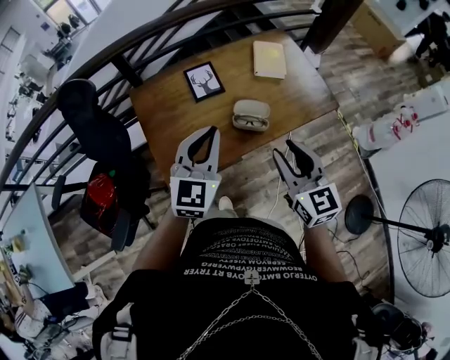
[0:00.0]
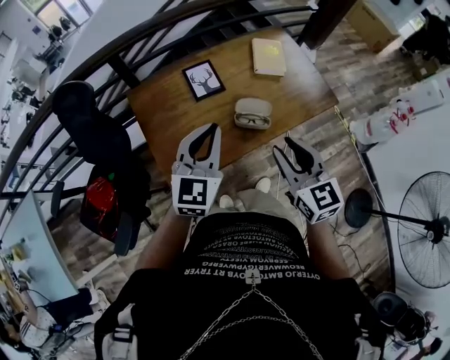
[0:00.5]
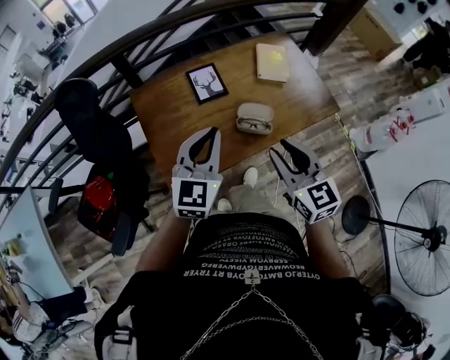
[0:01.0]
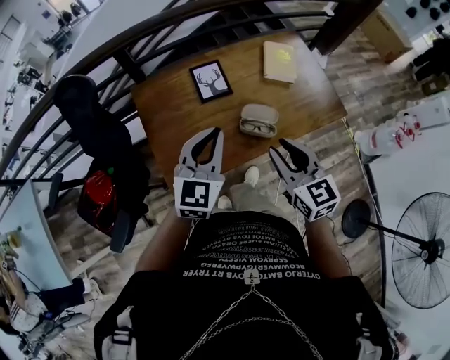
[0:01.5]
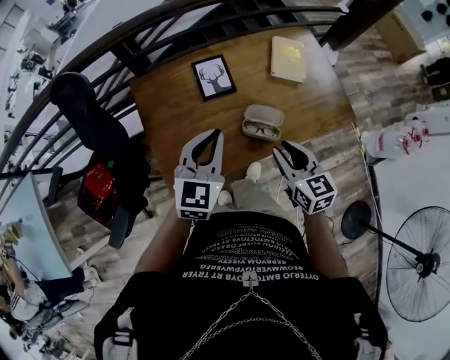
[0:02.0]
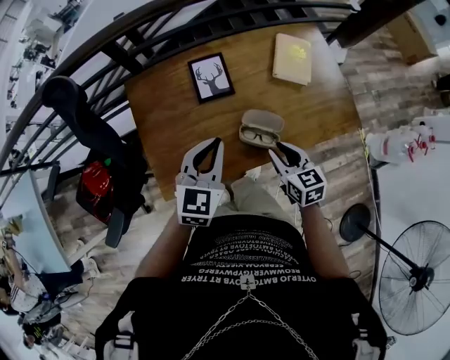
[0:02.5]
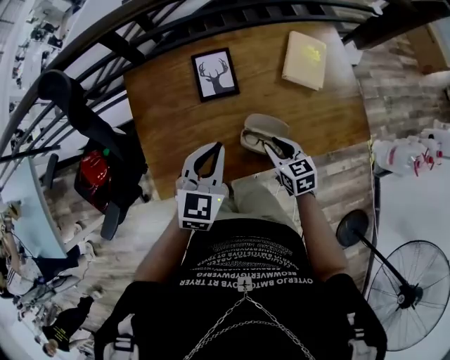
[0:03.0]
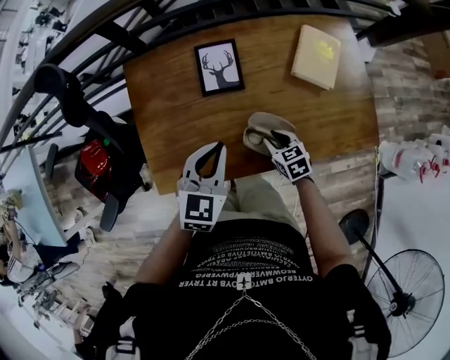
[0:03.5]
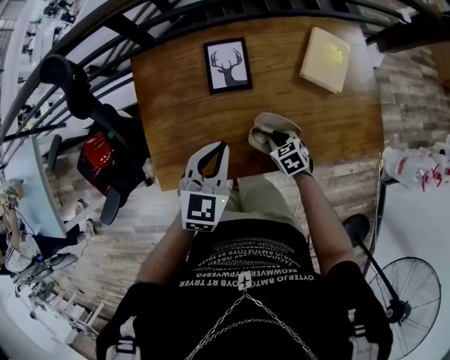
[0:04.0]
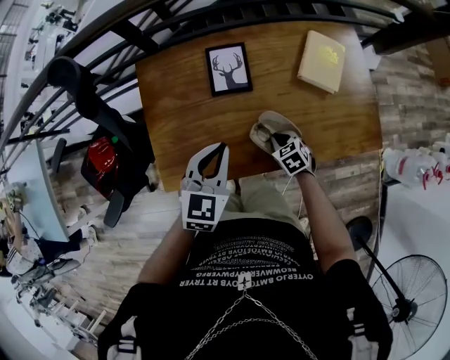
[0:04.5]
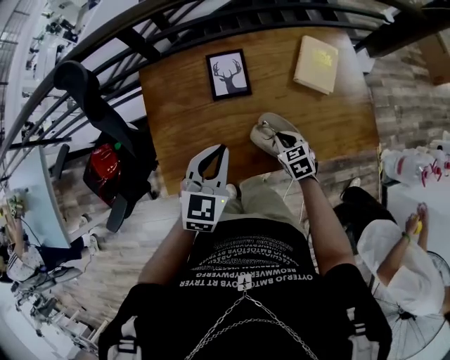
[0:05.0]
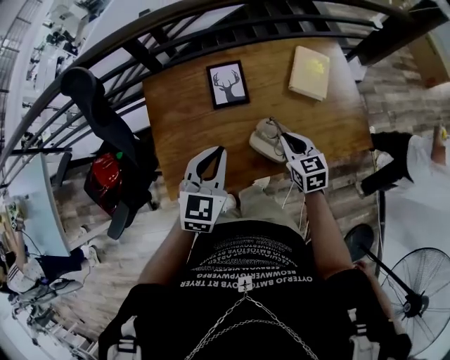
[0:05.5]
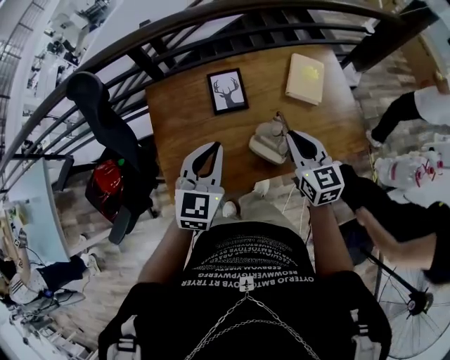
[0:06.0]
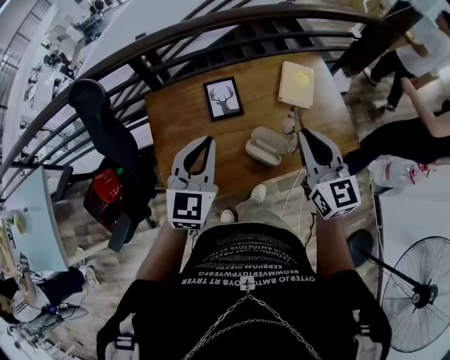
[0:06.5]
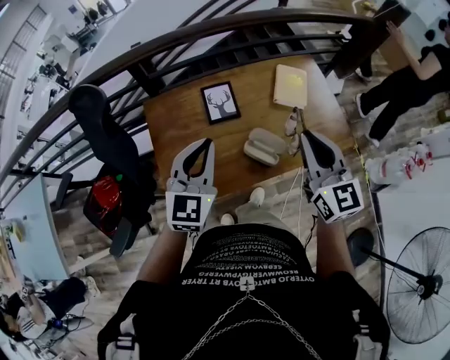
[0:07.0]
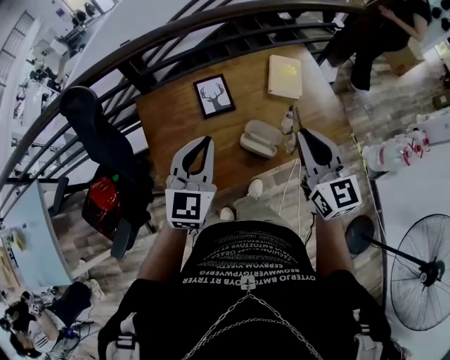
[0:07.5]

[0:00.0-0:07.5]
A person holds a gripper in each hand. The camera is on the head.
0:00.0 to 0:02.0: The left gripper travels forward and downward by about 10 cm; the right gripper goes roughly 15 cm downward and forward.
0:02.0 to 0:04.0: The left gripper travels downward by about 10 cm, while the right gripper heads downward, covering roughly 30 cm, and points its fingers some 30 degrees further downward.
0:04.0 to 0:05.5: The left gripper shifts some 5 cm upward, while the right gripper moves upward, approximately 15 cm, and turns by approximately 30 degrees.
0:05.5 to 0:07.5: The right gripper travels upward by approximately 25 cm, and rotates approximately 30 degrees, while the left gripper heads upward, covering some 10 cm.

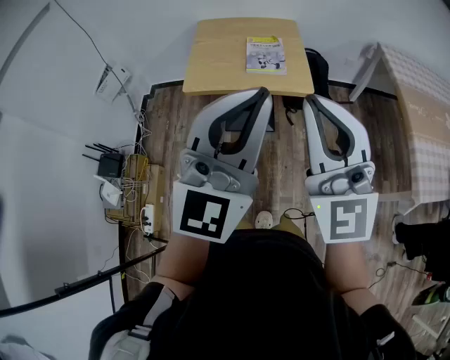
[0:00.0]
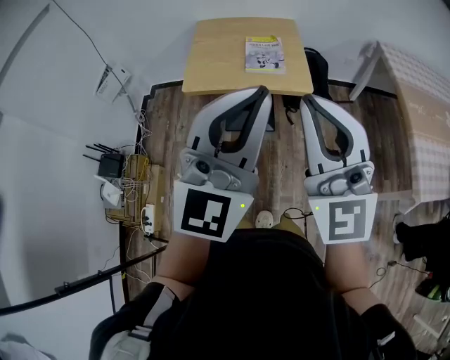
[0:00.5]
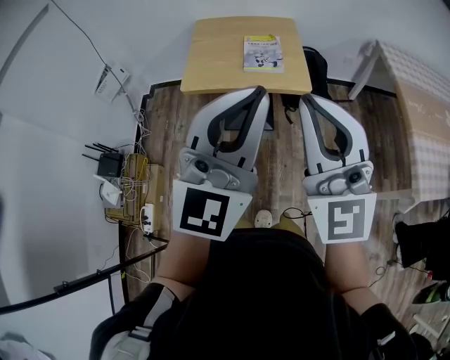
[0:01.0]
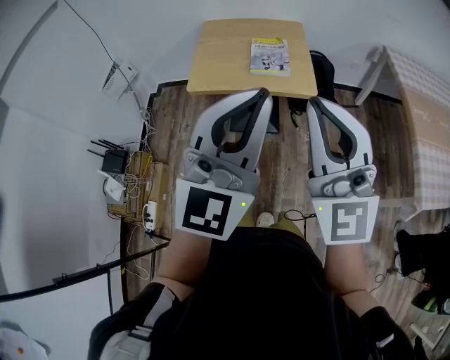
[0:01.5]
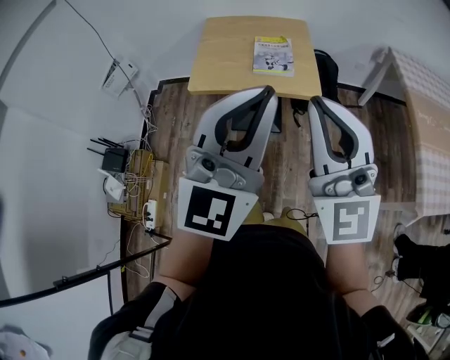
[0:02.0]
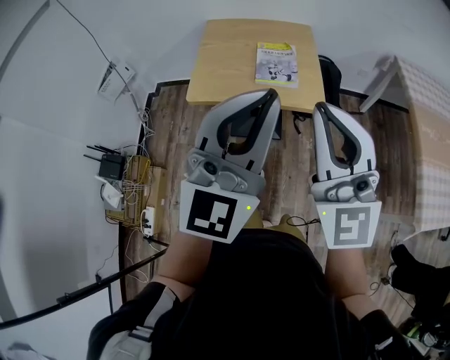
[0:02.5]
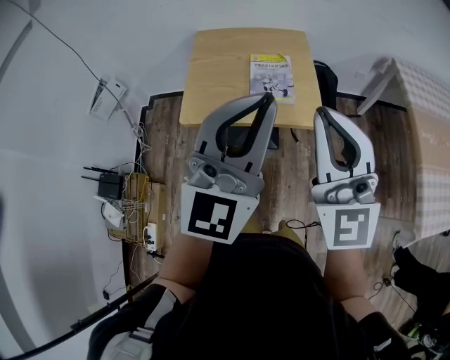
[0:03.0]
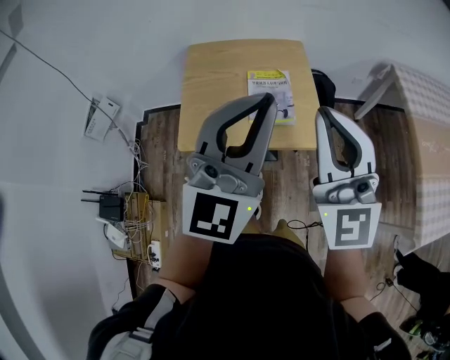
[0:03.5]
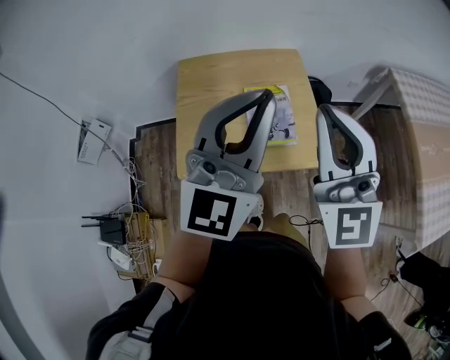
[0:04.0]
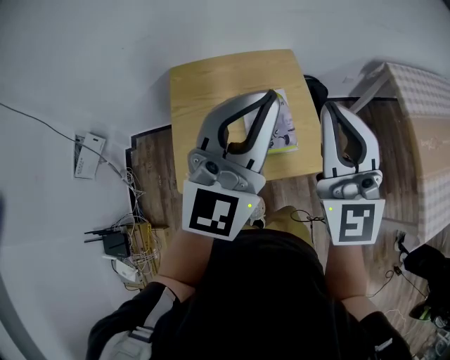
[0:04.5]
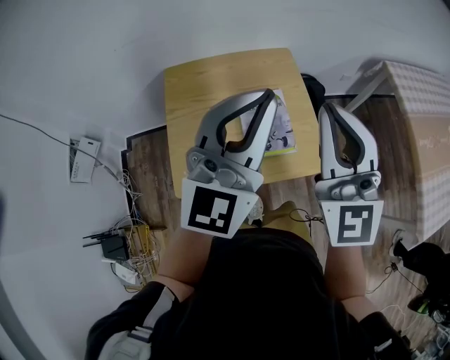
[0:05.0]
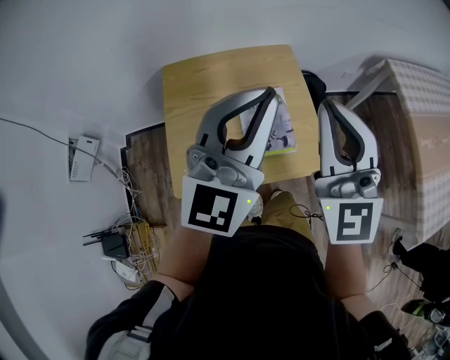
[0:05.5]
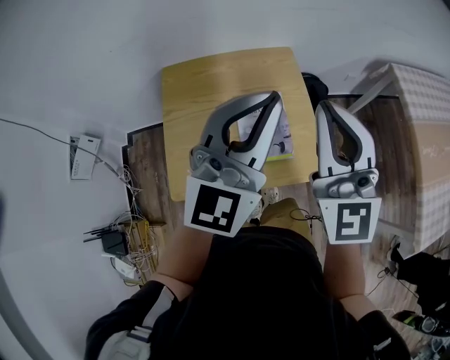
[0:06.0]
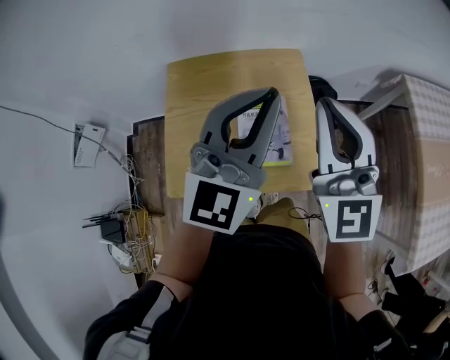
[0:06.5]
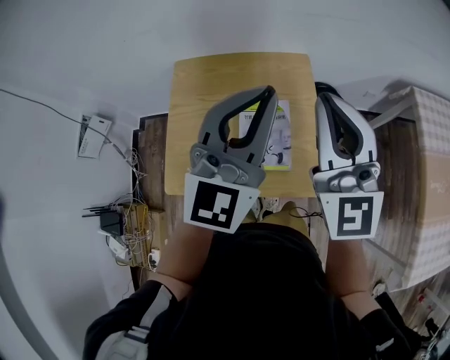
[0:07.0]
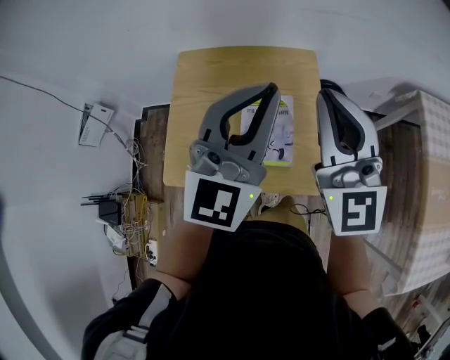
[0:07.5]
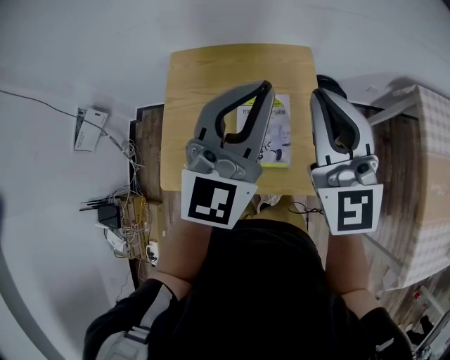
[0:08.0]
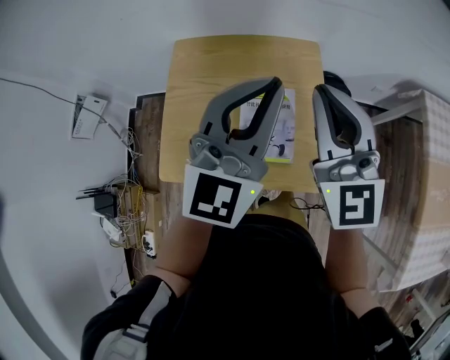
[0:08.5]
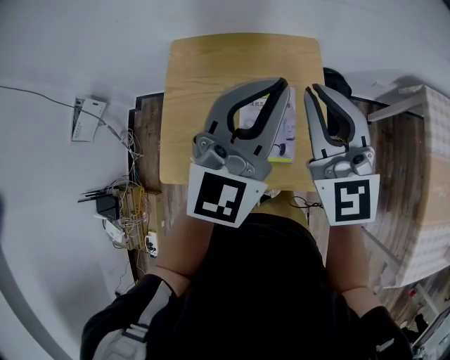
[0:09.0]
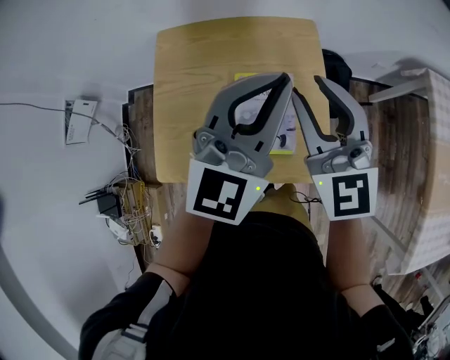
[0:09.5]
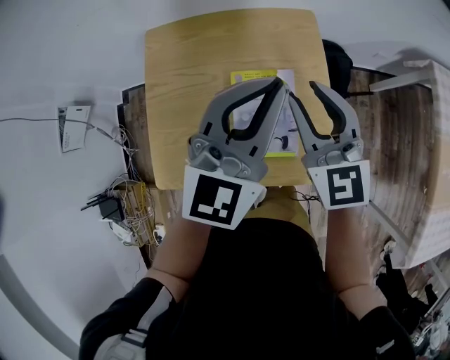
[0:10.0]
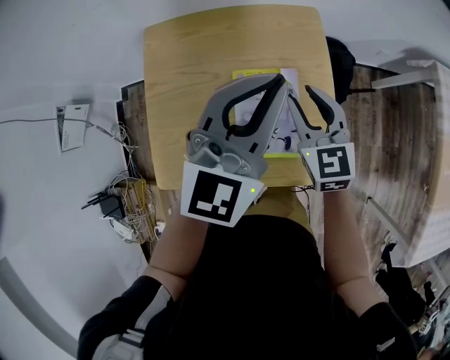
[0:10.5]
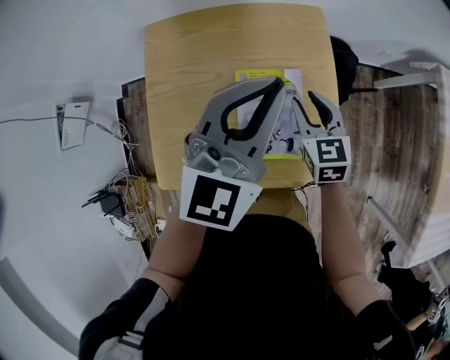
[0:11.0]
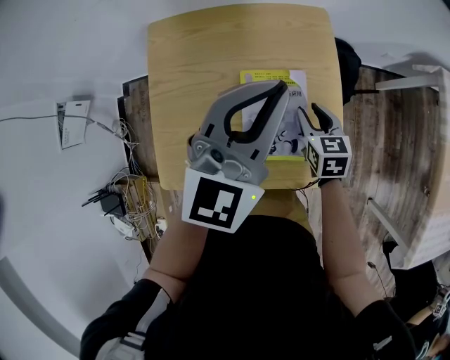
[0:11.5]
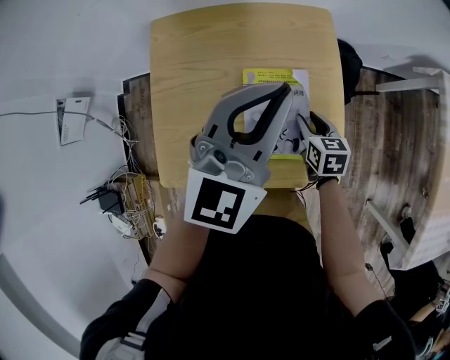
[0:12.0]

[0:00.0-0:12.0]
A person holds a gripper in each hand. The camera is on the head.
0:00.0 to 0:02.0: The grippers make only small movements.
0:02.0 to 0:04.0: Both grippers move forward, roughly 35 cm.
0:04.0 to 0:06.0: The grippers both shift forward by about 10 cm.
0:06.0 to 0:08.0: The two grippers go approximately 5 cm forward.
0:08.0 to 0:10.0: The left gripper goes about 10 cm downward, while the right gripper moves downward, some 15 cm, rotates roughly 20 degrees, and opens up.
0:10.0 to 0:12.0: The right gripper moves downward, some 25 cm, and tilts its fingers about 30 degrees downward.

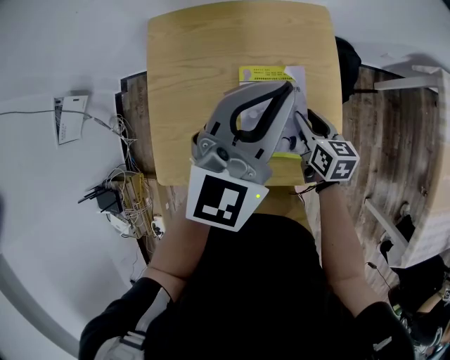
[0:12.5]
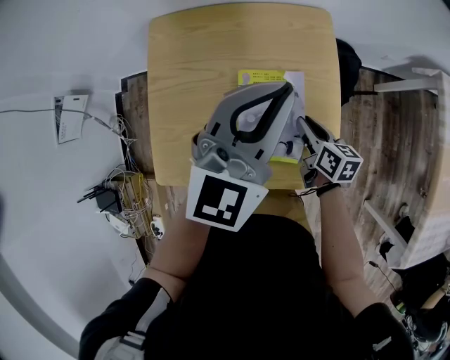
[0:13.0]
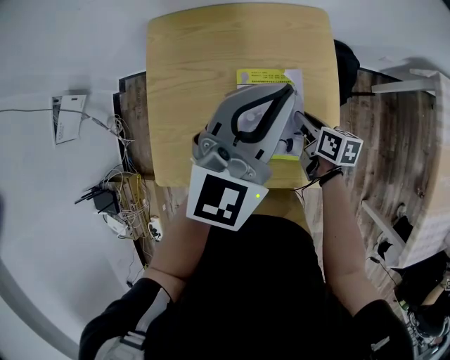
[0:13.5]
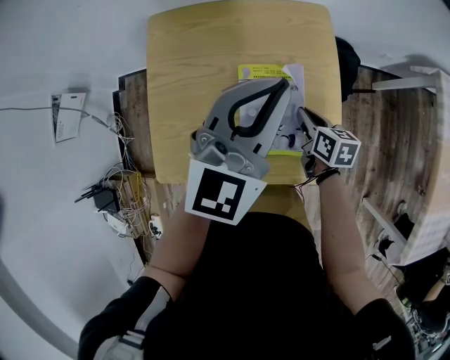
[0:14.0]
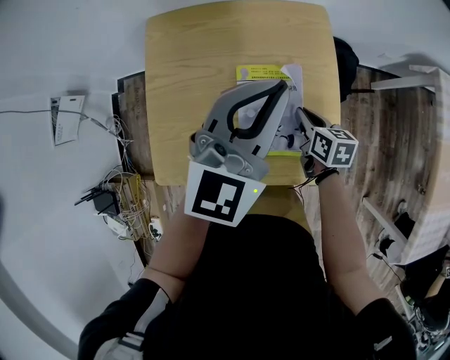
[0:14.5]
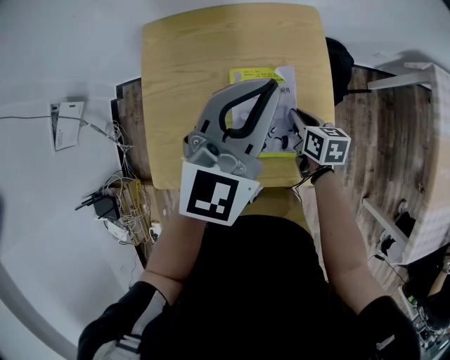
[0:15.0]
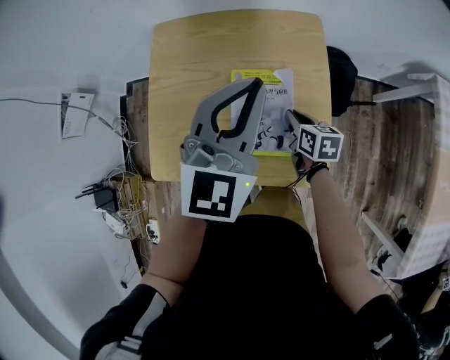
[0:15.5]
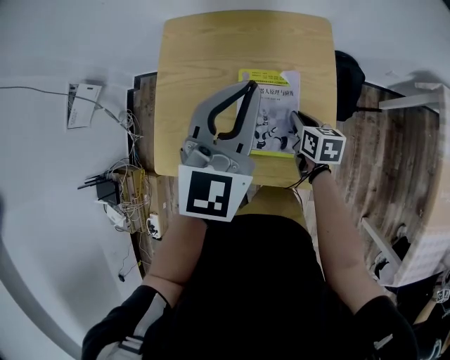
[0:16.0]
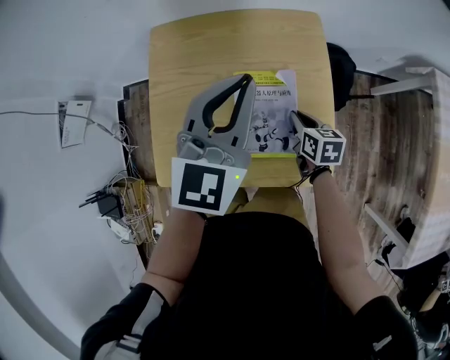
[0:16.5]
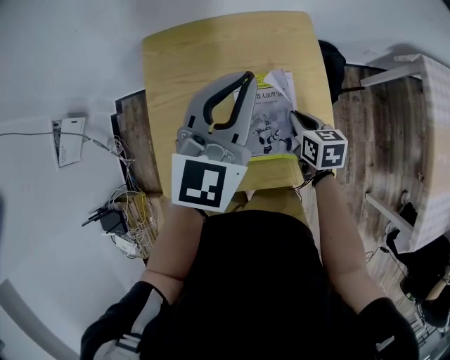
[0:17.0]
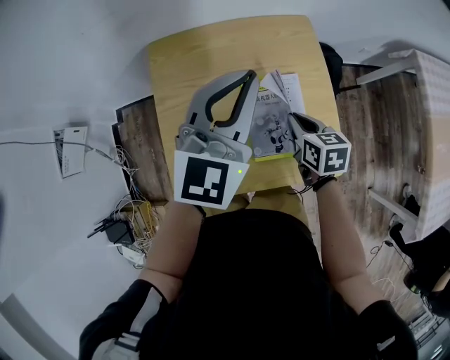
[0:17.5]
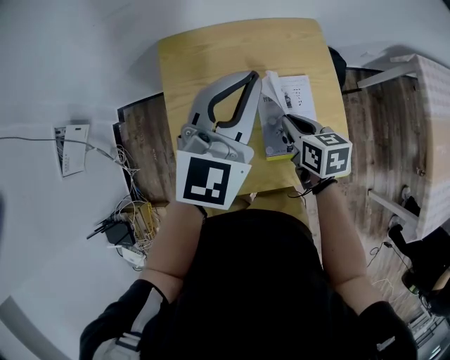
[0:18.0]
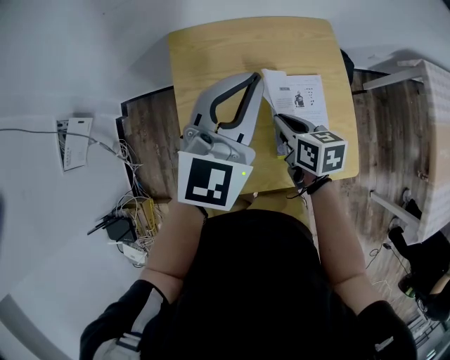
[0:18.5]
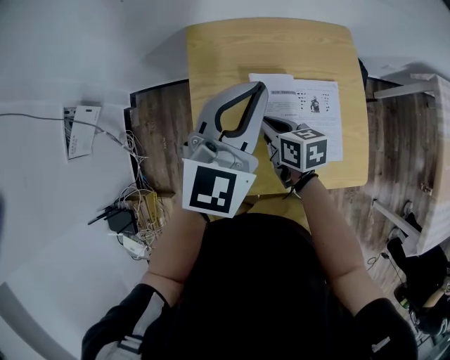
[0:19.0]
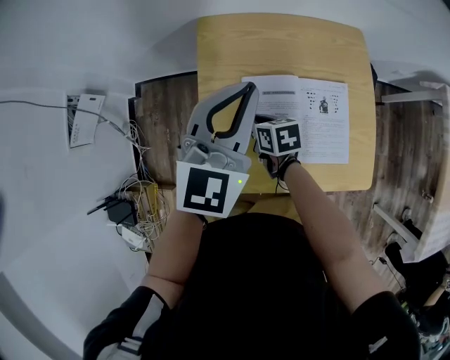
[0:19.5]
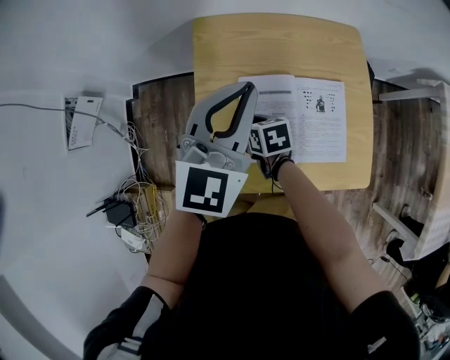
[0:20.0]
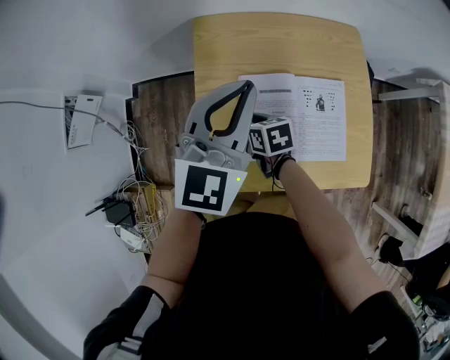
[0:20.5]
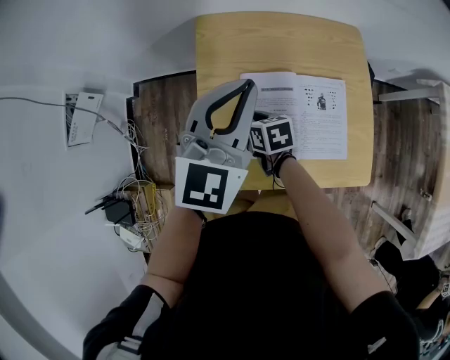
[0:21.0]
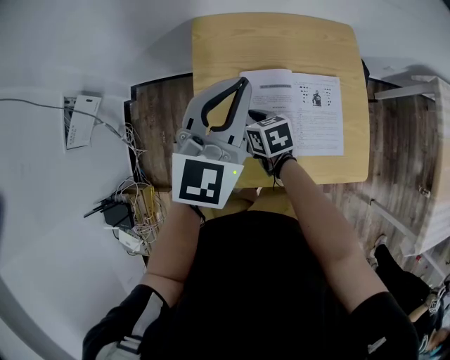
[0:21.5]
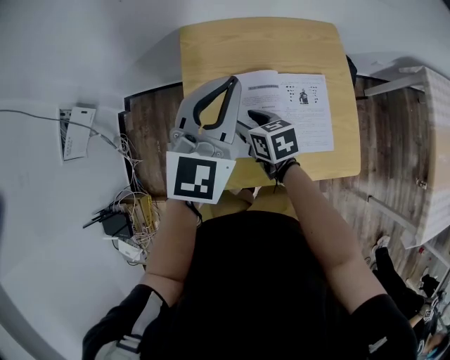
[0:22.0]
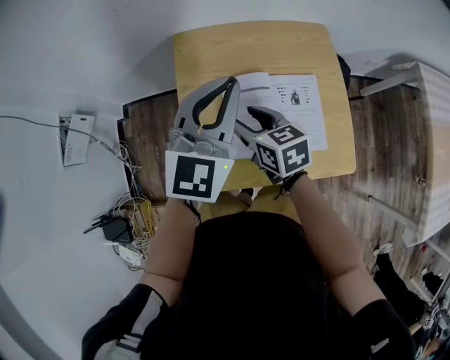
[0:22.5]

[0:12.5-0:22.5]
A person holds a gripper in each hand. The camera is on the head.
0:12.5 to 0:14.5: The right gripper closes up.
0:14.5 to 0:16.5: The grippers make only small movements.
0:16.5 to 0:18.5: The left gripper shifts roughly 15 cm to the left. The right gripper shifts roughly 20 cm to the left and upward.
0:18.5 to 0:20.5: The left gripper shifts about 5 cm to the left, while the right gripper heads to the left and downward, covering about 20 cm, and opens its fingers.
0:20.5 to 0:22.5: The right gripper travels upward by some 15 cm.
